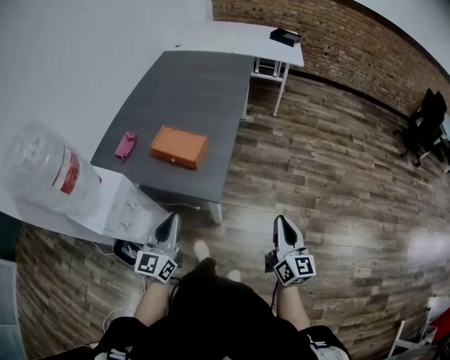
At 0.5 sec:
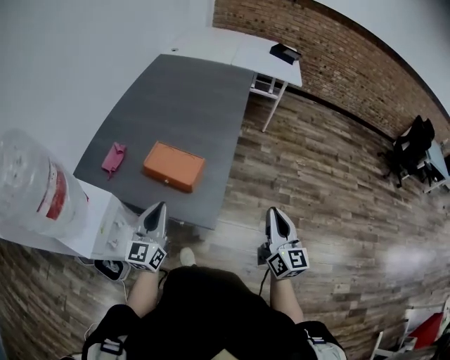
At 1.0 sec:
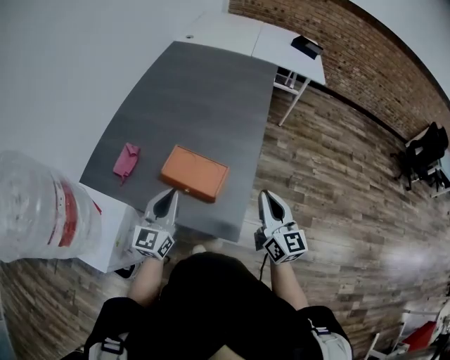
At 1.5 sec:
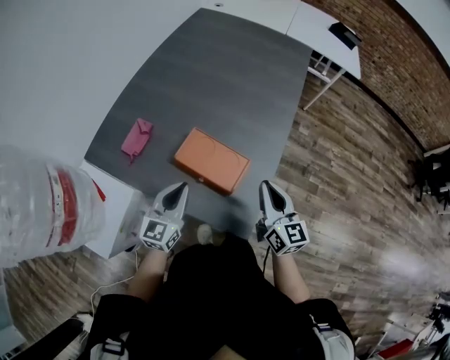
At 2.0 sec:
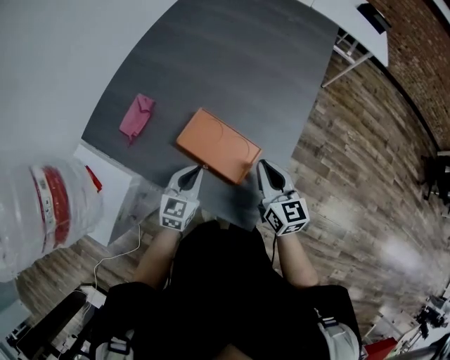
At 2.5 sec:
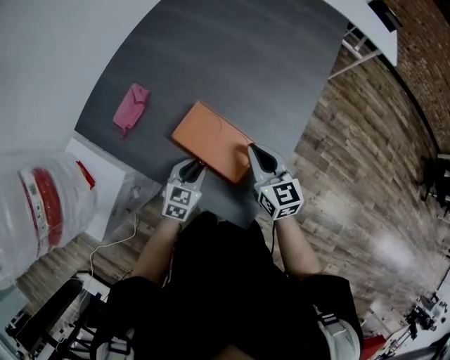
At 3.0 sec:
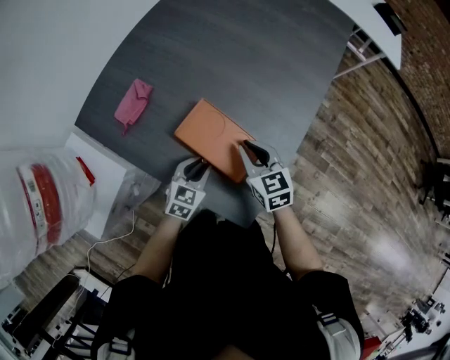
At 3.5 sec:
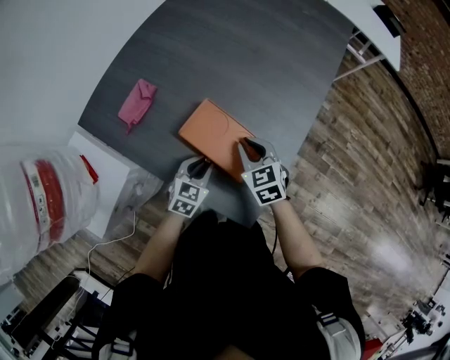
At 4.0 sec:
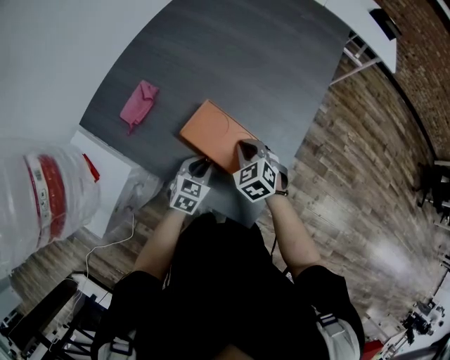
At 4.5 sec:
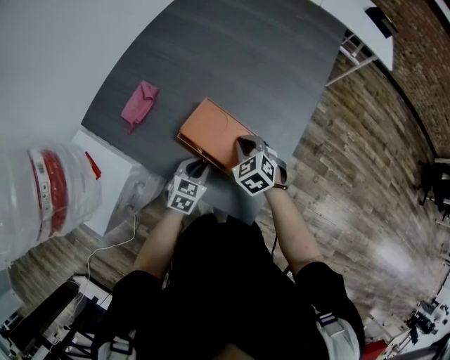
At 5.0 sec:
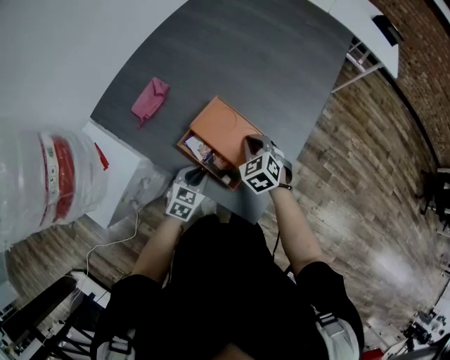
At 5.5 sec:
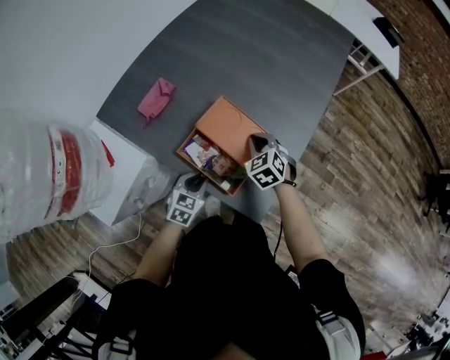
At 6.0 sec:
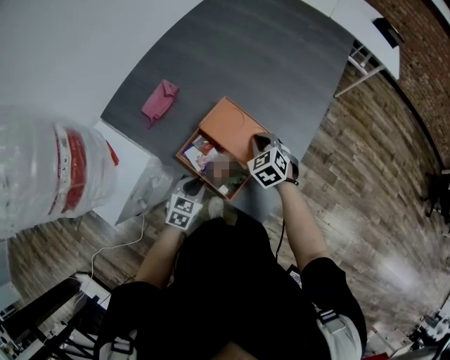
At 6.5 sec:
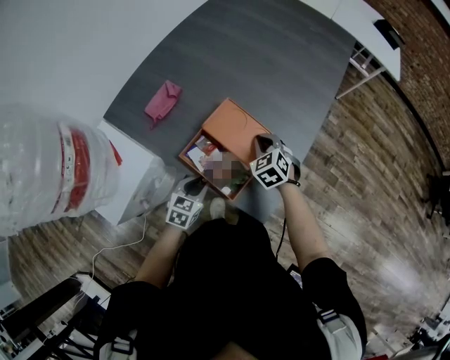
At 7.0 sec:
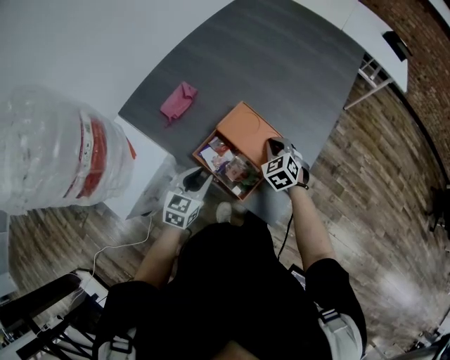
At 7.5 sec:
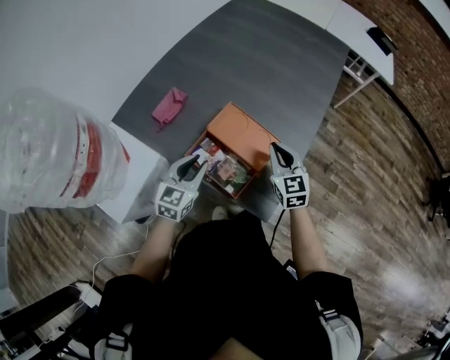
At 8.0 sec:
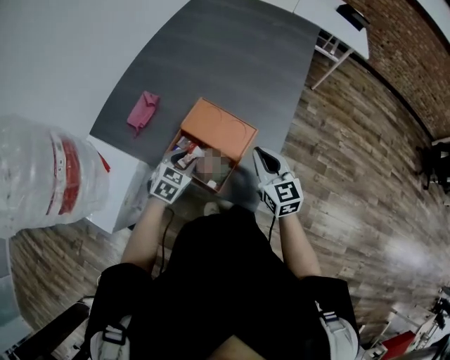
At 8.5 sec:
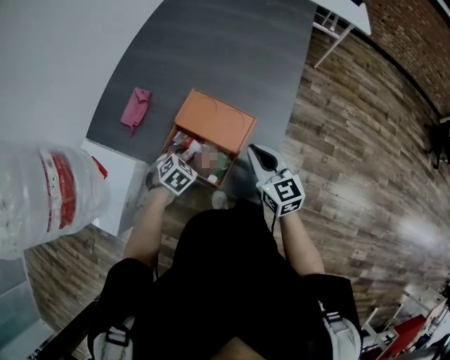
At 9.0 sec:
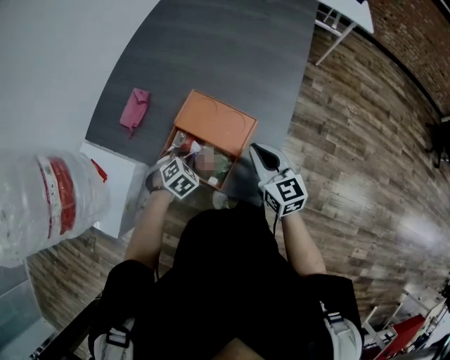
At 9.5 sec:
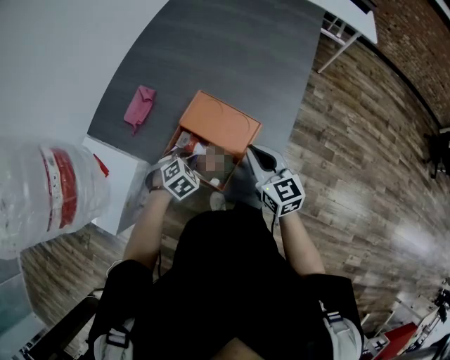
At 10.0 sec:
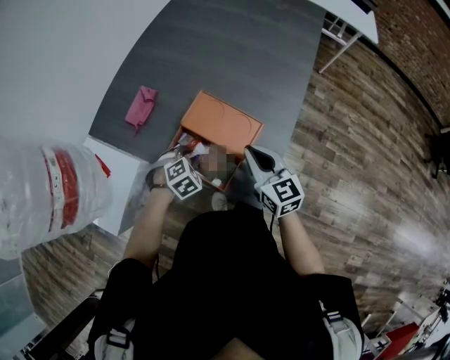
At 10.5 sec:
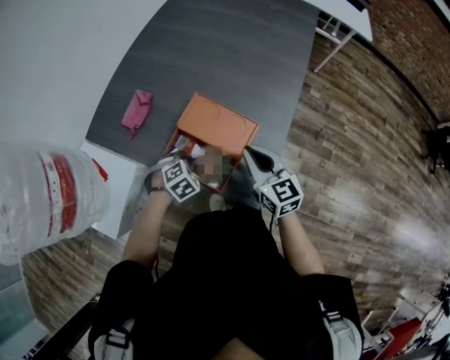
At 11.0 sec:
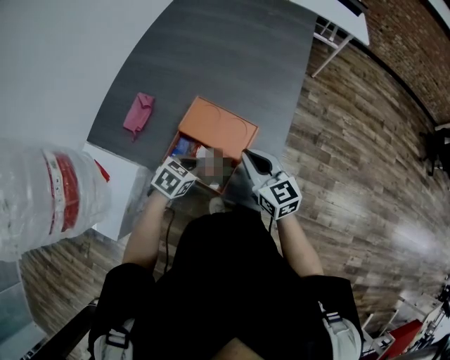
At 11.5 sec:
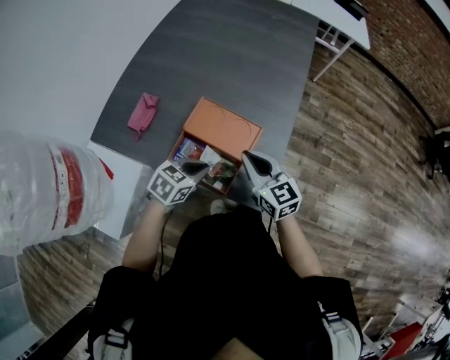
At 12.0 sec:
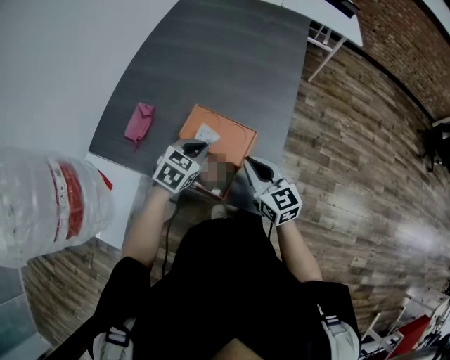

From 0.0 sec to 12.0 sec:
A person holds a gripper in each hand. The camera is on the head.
From 0.0 sec to 2.0 sec: The left gripper shifts about 30 cm forward and downward, and changes its angle by about 30 degrees. The right gripper is displaced forward and to the left by roughly 40 cm, and rotates approximately 30 degrees.
From 2.0 sec to 4.0 sec: The left gripper is displaced downward by about 5 cm. Meanwhile the right gripper moves downward and to the left, roughly 10 cm, and points its fingers about 30 degrees further downward.
From 4.0 sec to 6.0 sec: The left gripper goes approximately 10 cm backward and to the left.
From 6.0 sec to 8.0 sec: The left gripper travels forward and upward by approximately 10 cm. The right gripper moves upward, backward and to the right, about 15 cm, and angles its fingers upward, by approximately 30 degrees.
From 8.0 sec to 10.0 sec: The left gripper is displaced downward by about 5 cm, and rotates about 40 degrees.
From 10.0 sec to 12.0 sec: The left gripper is displaced upward, forward and to the right by approximately 15 cm, and swivels approximately 30 degrees.

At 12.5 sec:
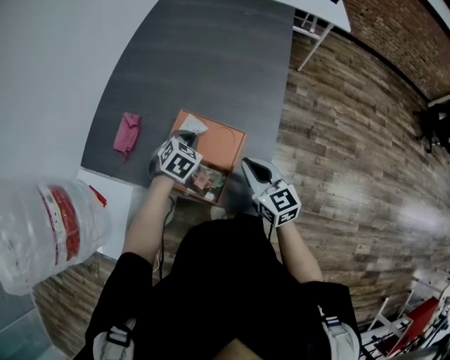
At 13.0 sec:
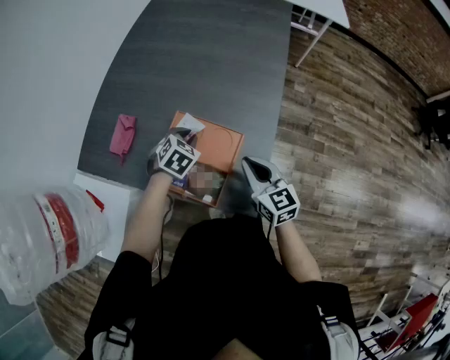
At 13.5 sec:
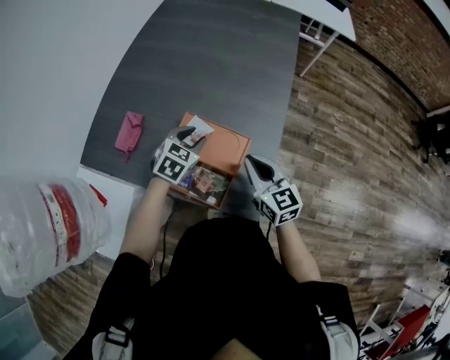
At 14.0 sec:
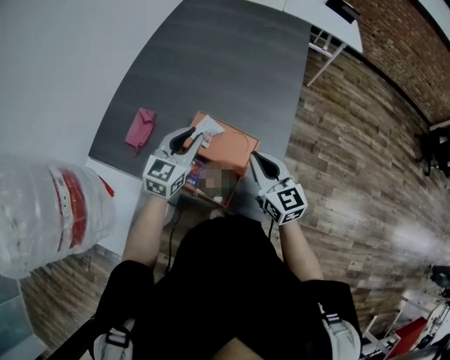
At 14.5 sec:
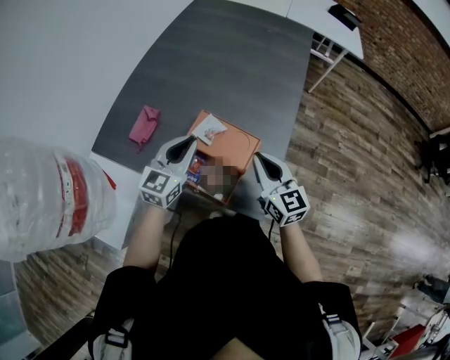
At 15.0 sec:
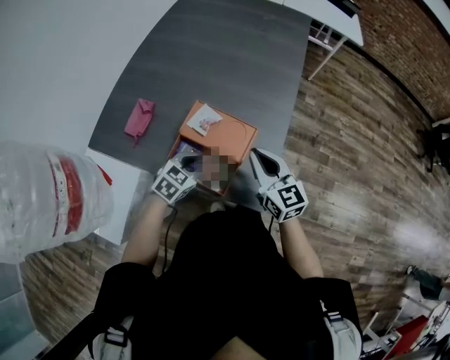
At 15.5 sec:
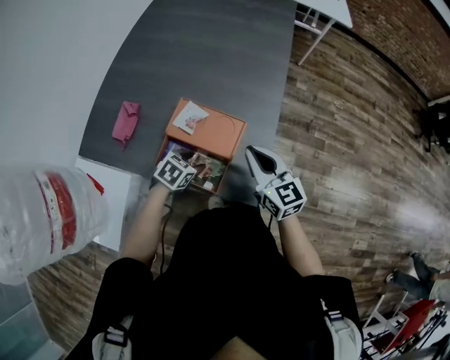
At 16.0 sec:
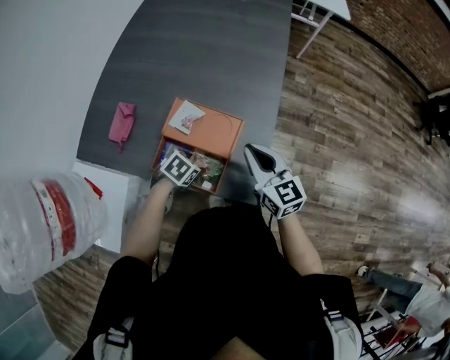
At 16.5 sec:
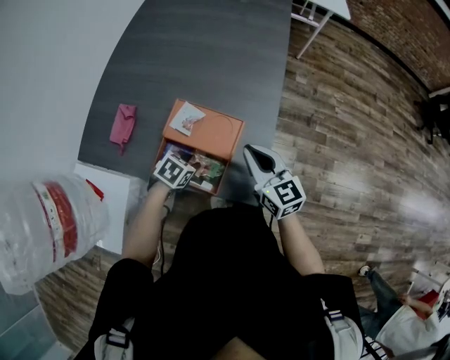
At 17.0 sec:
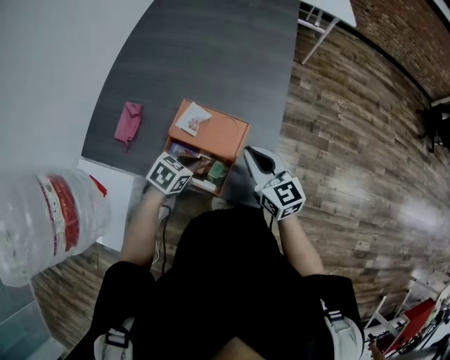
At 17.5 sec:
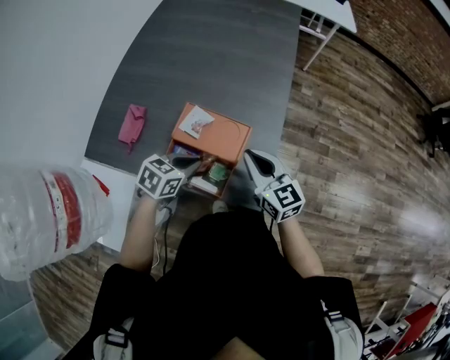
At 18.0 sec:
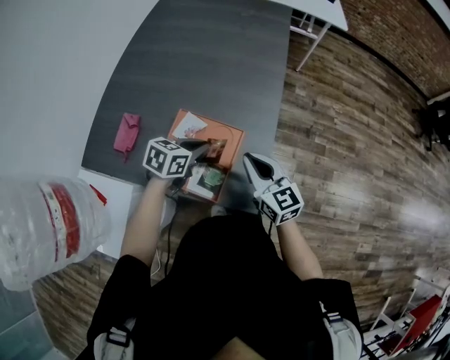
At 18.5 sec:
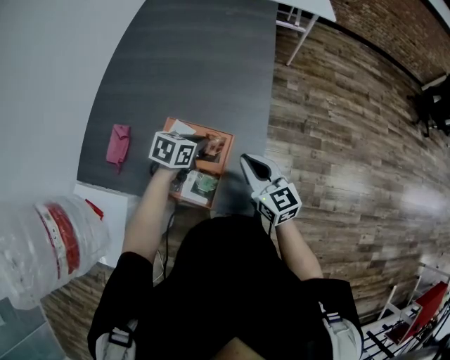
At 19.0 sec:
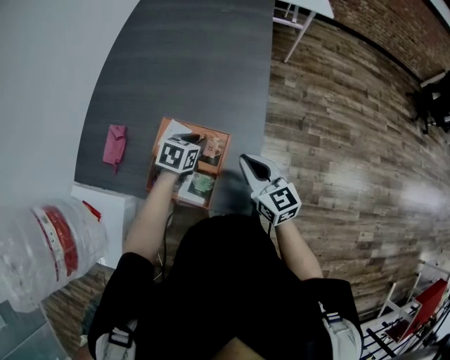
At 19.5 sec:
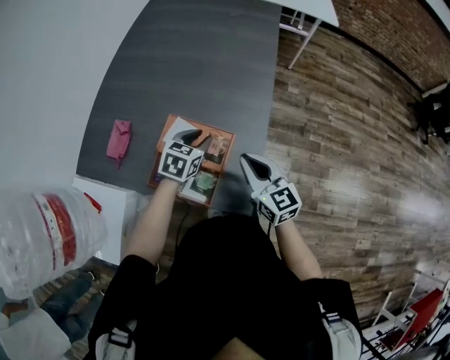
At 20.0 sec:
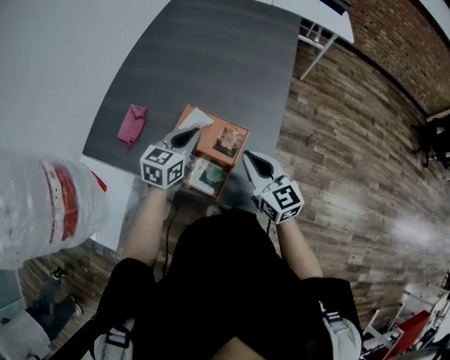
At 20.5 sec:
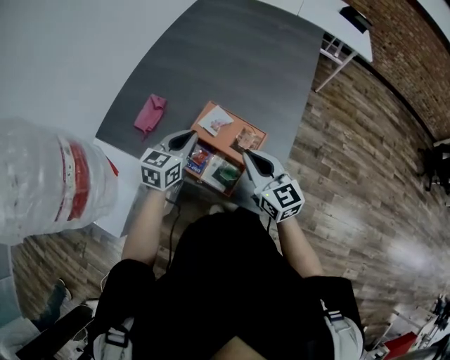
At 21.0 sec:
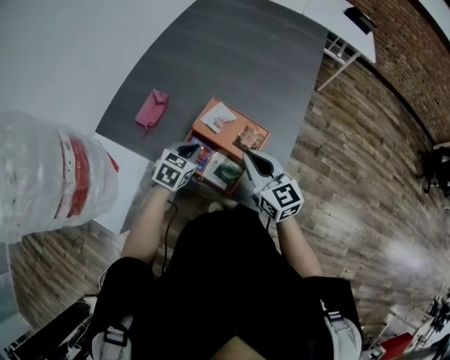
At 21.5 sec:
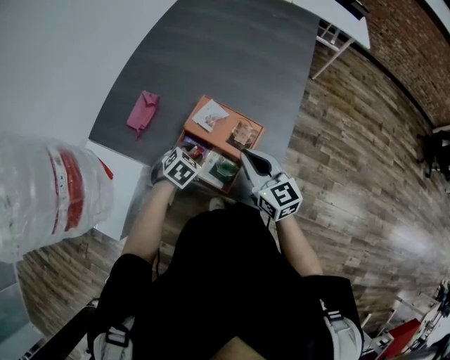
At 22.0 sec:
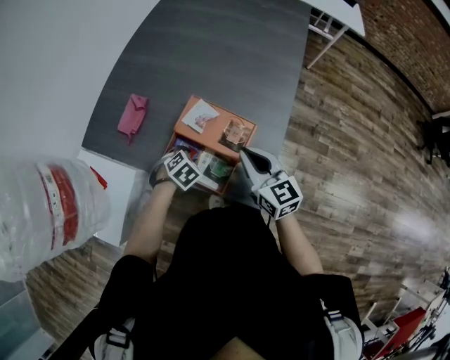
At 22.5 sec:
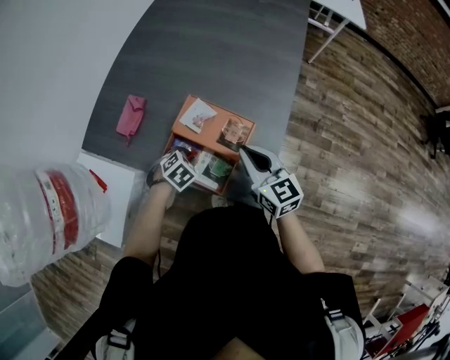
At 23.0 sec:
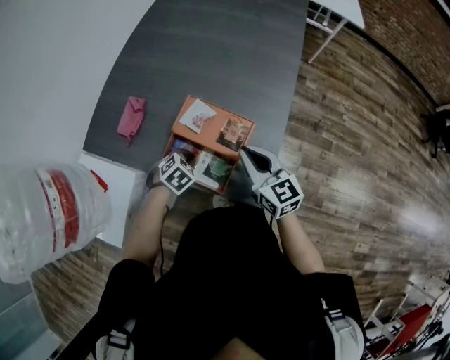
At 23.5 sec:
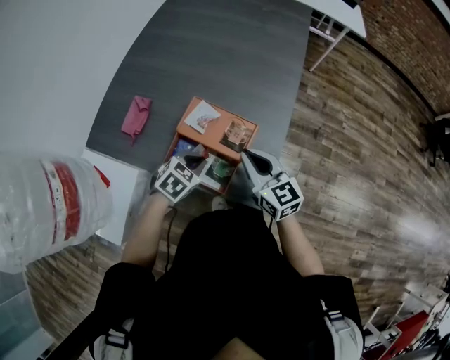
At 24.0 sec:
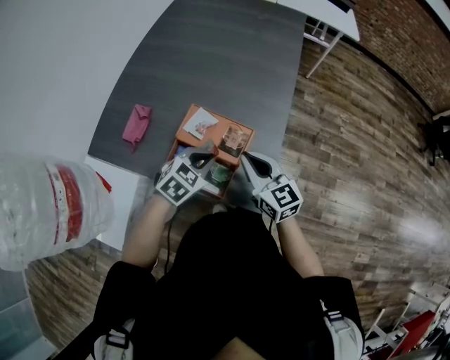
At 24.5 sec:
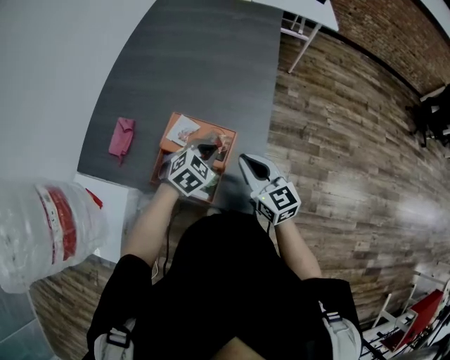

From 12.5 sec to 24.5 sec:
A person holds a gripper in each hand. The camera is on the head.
From 12.5 sec to 14.5 sec: The right gripper changes place by approximately 5 cm, while the left gripper shifts some 15 cm upward, tips its fingers upward by approximately 40 degrees, and opens and closes again.
From 14.5 sec to 16.5 sec: The left gripper travels downward by some 20 cm, tips its fingers downward by some 50 degrees, and opens up.
From 16.5 sec to 18.5 sec: The left gripper is displaced forward and upward by roughly 15 cm, turns by roughly 20 degrees, and closes its fingers.
From 18.5 sec to 20.5 sec: The right gripper shifts some 10 cm to the left. Meanwhile the left gripper heads to the left, upward and backward, covering some 15 cm, changes its angle by approximately 40 degrees, and opens, then closes once more.
From 20.5 sec to 22.5 sec: The left gripper shifts roughly 20 cm downward, points its fingers roughly 50 degrees further downward, and opens, then closes once more.
From 22.5 sec to 24.5 sec: The left gripper shifts roughly 20 cm to the right, upward and forward, and turns by about 30 degrees.

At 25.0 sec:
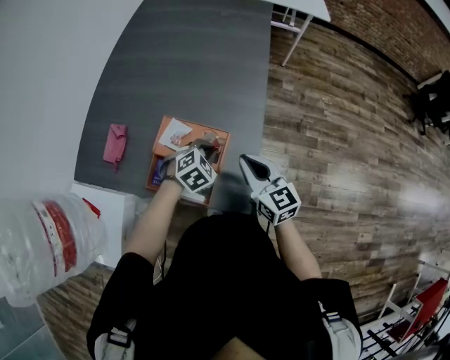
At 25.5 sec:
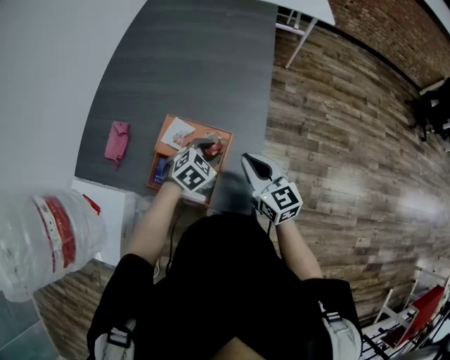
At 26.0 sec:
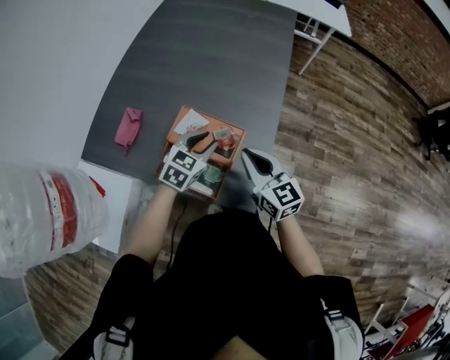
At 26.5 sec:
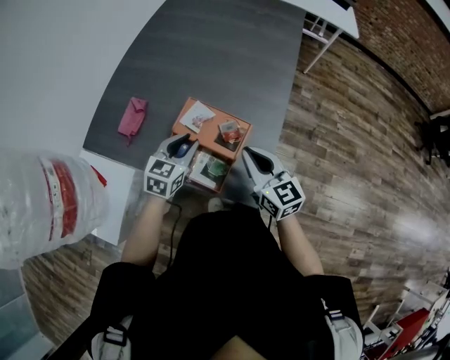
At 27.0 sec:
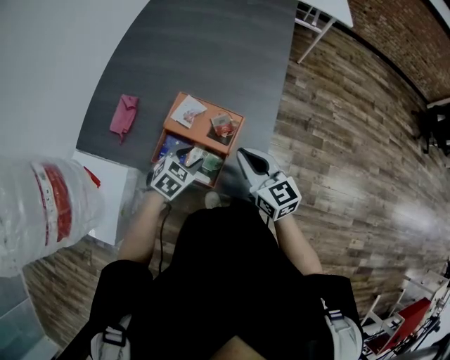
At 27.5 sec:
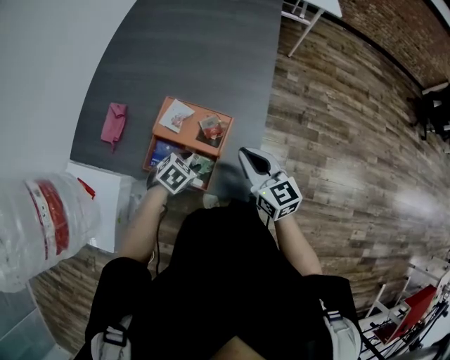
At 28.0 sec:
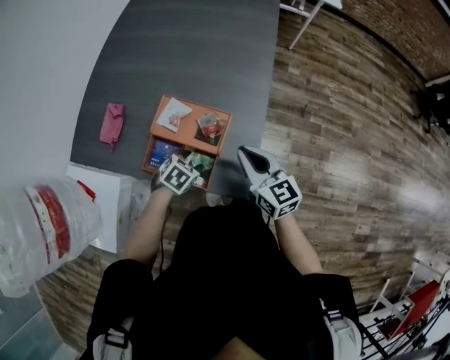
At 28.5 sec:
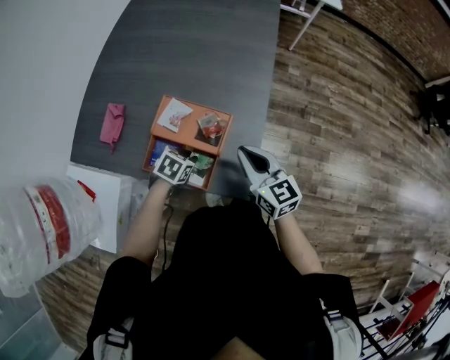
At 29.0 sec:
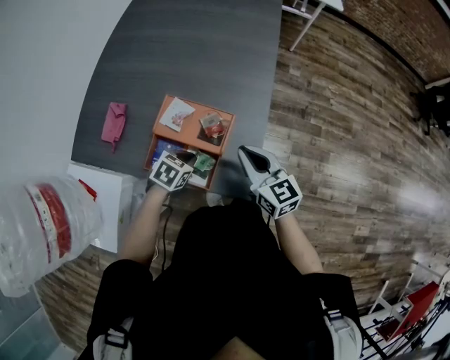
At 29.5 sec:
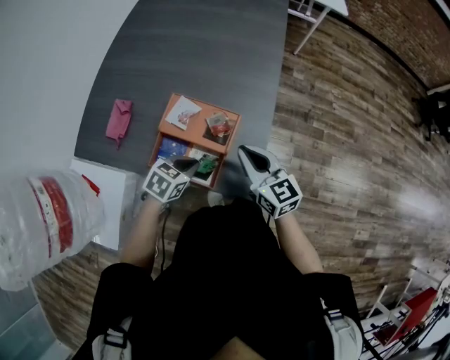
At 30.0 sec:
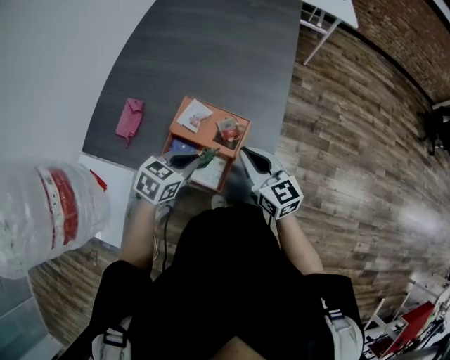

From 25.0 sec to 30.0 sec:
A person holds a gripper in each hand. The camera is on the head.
From 25.0 sec to 27.5 sec: The left gripper travels backward, to the left and downward by roughly 10 cm, changes its angle by some 20 degrees, and opens up.
From 27.5 sec to 30.0 sec: The left gripper goes roughly 10 cm upward, changes its angle by roughly 20 degrees, and closes its fingers.
